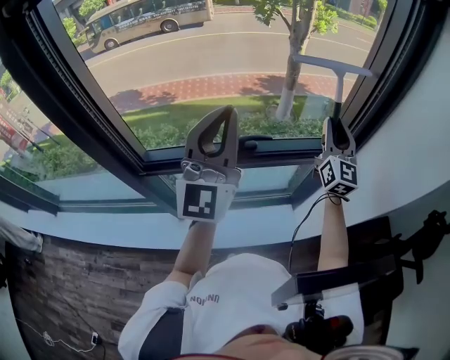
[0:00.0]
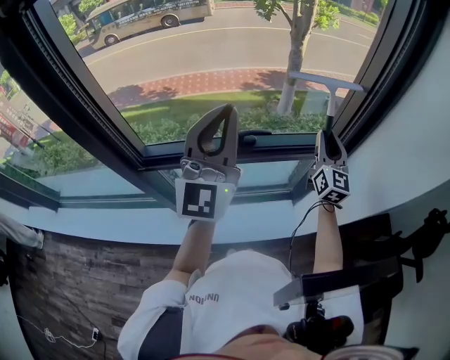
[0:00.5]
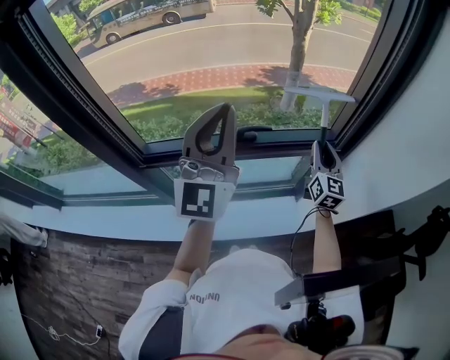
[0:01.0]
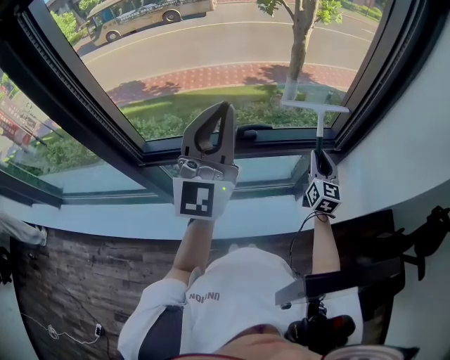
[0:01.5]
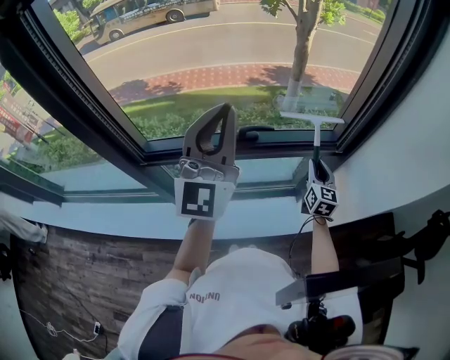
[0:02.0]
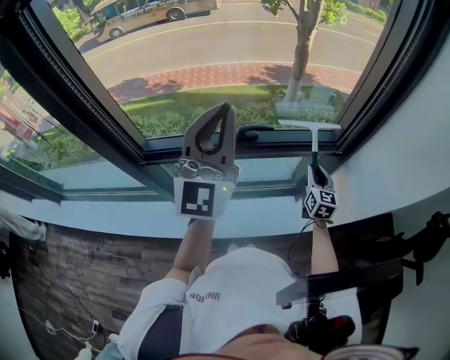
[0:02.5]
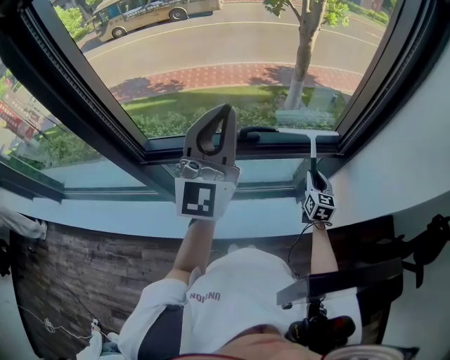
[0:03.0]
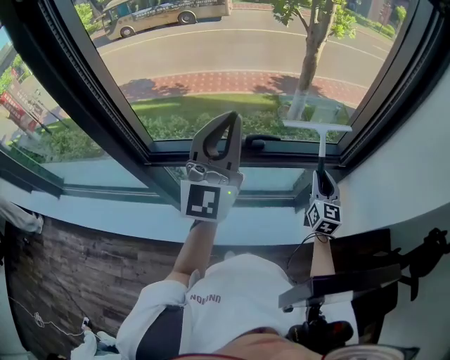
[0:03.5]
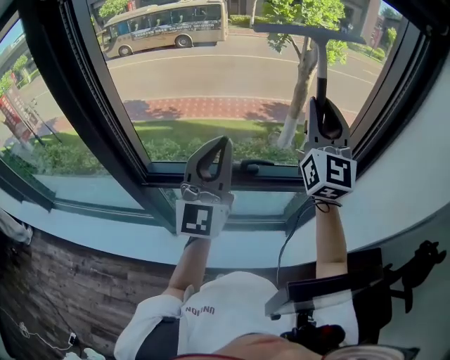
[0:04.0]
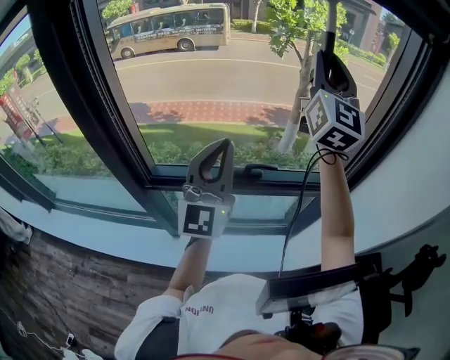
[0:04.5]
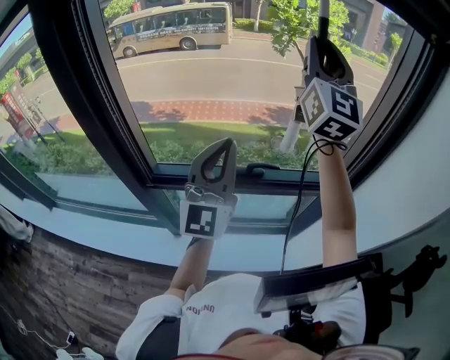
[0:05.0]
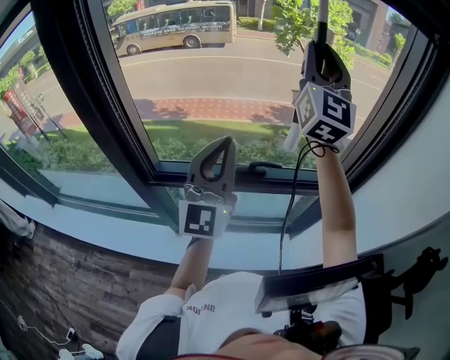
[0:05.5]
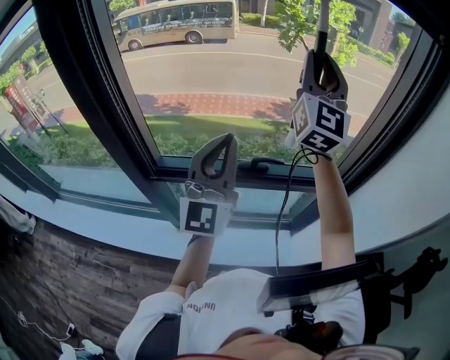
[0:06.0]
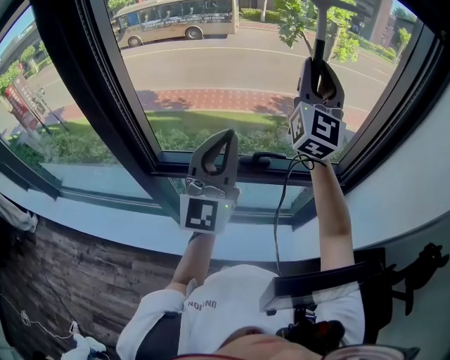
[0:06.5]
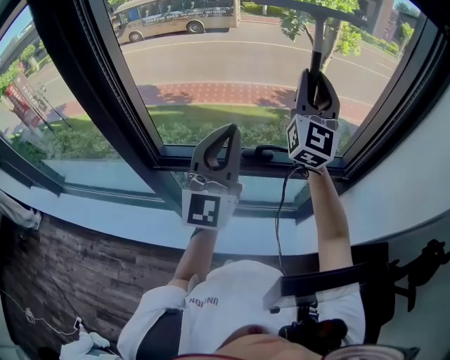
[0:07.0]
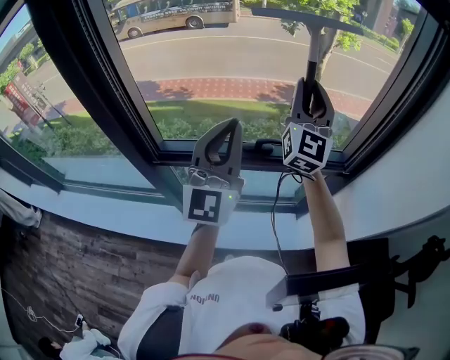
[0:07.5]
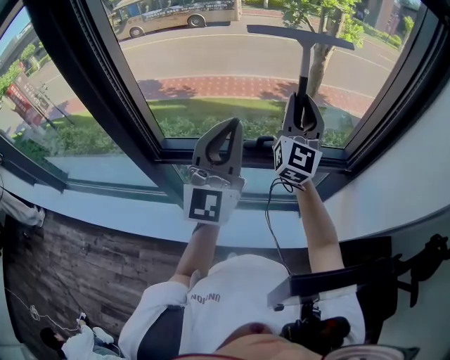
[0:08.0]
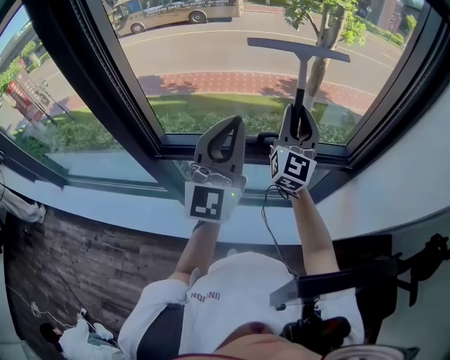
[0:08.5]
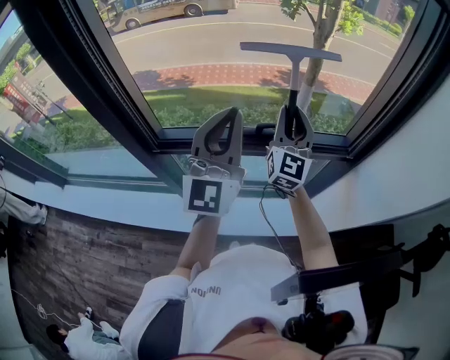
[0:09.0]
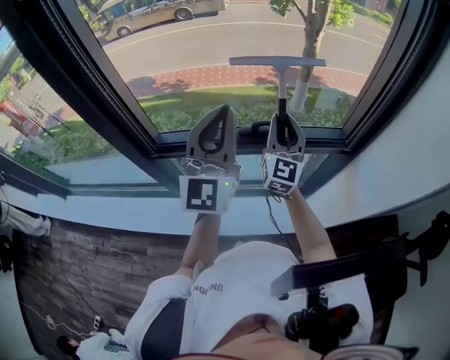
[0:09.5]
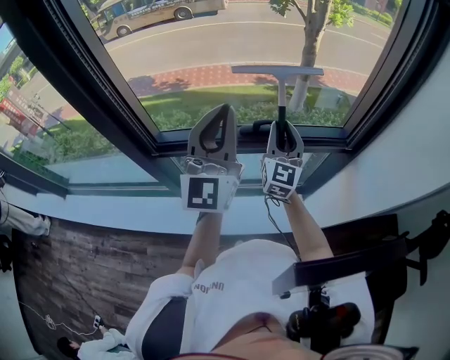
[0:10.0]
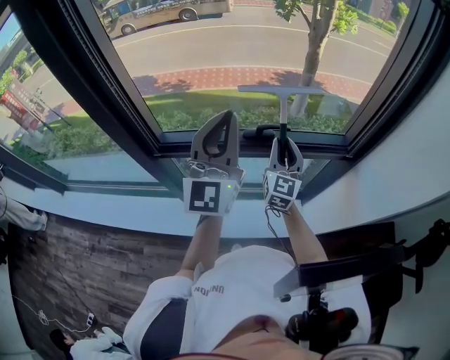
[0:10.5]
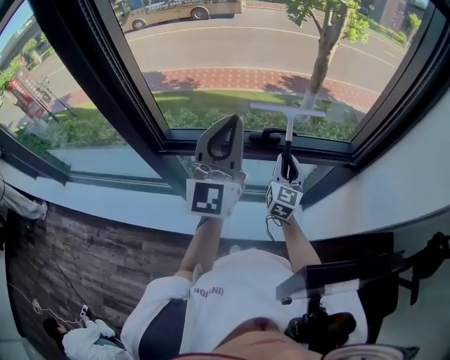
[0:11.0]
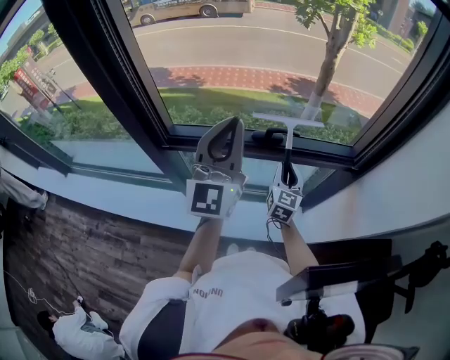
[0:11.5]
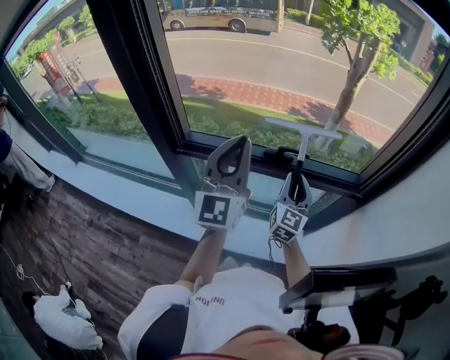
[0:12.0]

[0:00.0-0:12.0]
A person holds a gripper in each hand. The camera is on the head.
0.0 to 2.0 s: The right gripper moves downward, some 20 cm, and turns by some 30 degrees.
2.0 to 4.0 s: The right gripper shifts approximately 40 cm upward, and angles its fingers upward, by roughly 40 degrees.
4.0 to 6.0 s: The right gripper heads upward and to the left, covering roughly 10 cm.
6.0 to 8.0 s: The right gripper shifts some 20 cm downward.
8.0 to 10.0 s: The right gripper travels downward by roughly 15 cm.
10.0 to 12.0 s: The right gripper travels downward by about 5 cm.

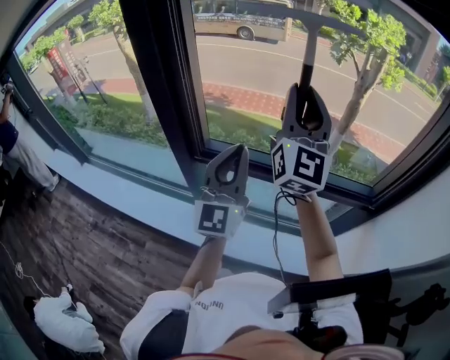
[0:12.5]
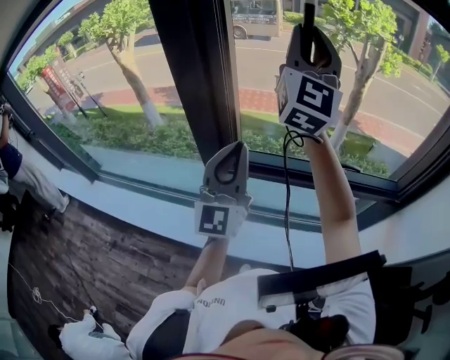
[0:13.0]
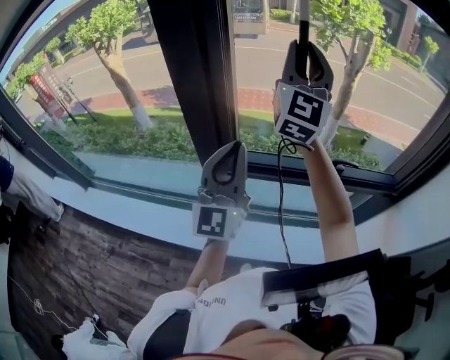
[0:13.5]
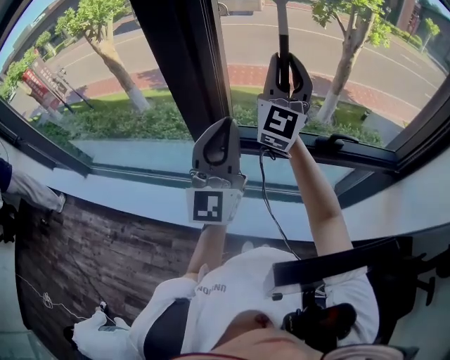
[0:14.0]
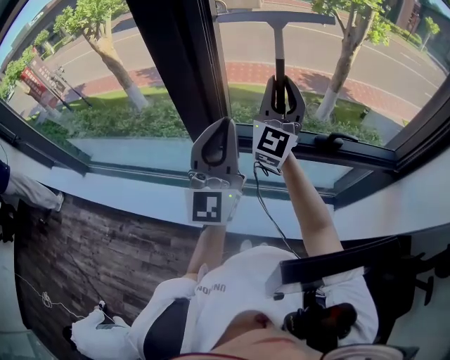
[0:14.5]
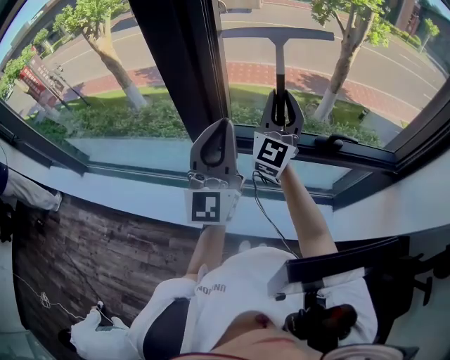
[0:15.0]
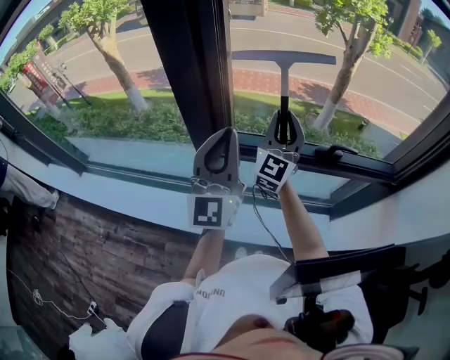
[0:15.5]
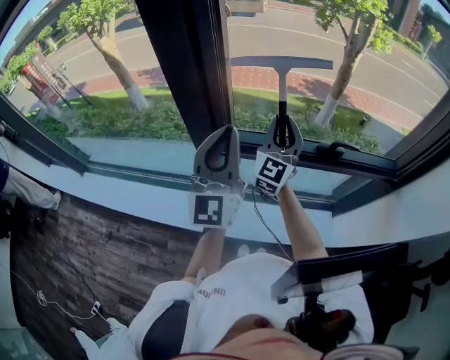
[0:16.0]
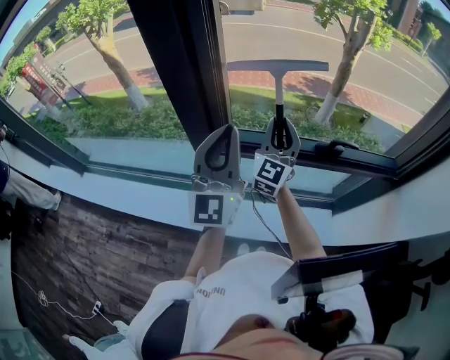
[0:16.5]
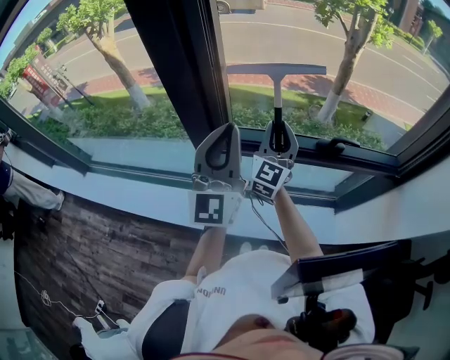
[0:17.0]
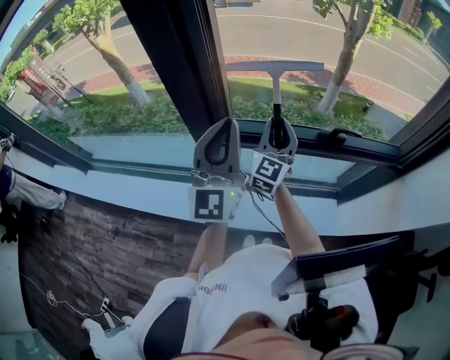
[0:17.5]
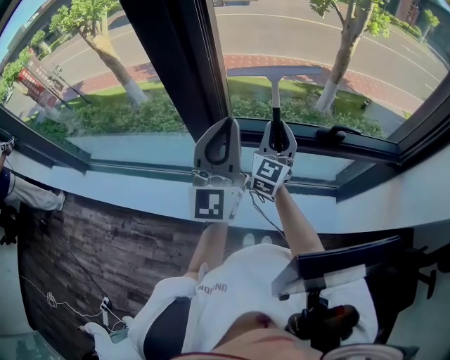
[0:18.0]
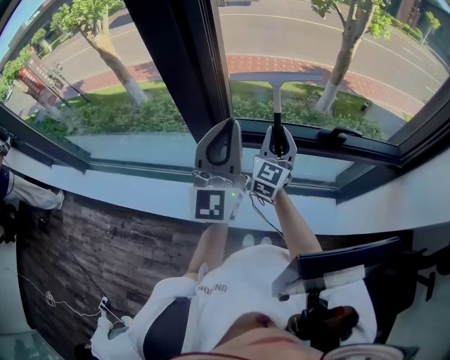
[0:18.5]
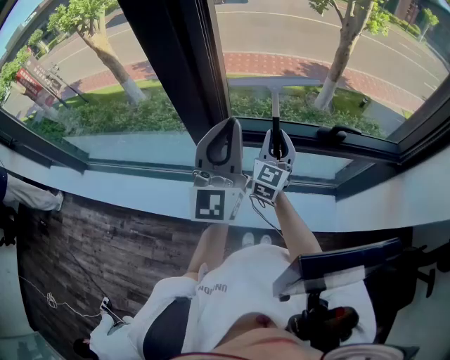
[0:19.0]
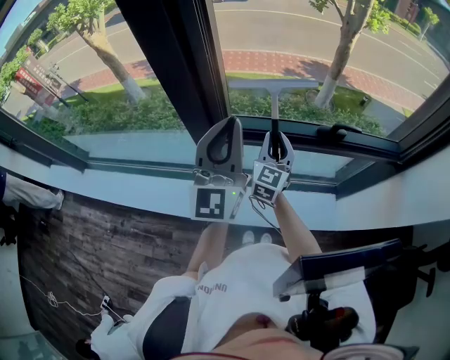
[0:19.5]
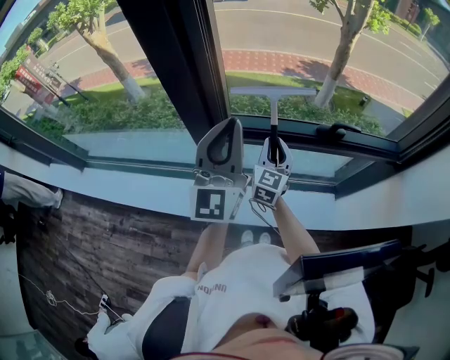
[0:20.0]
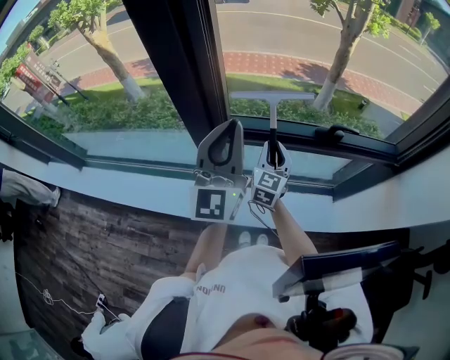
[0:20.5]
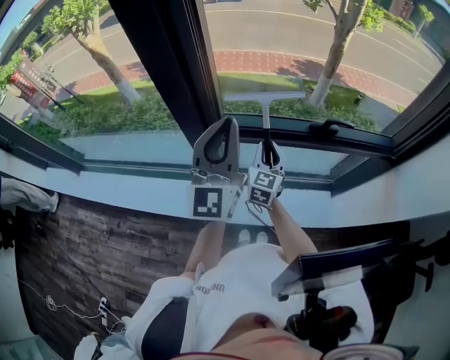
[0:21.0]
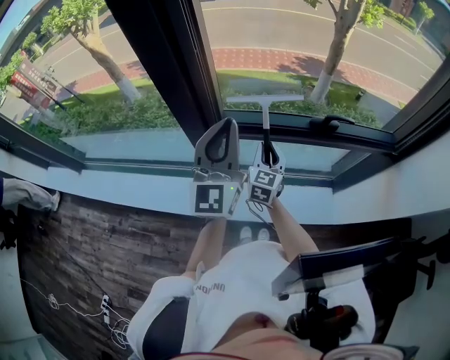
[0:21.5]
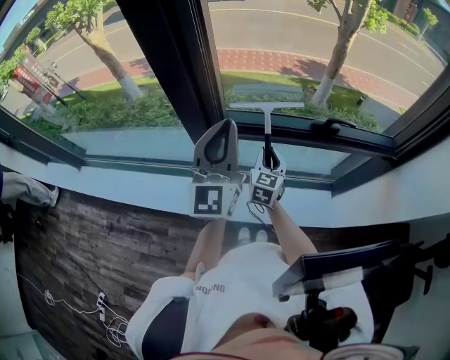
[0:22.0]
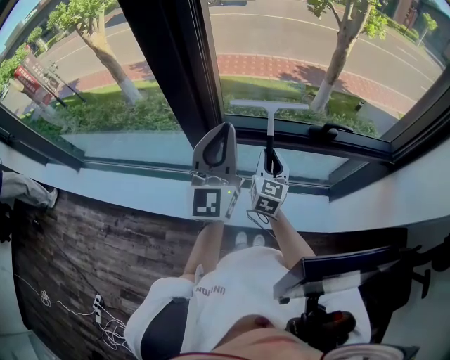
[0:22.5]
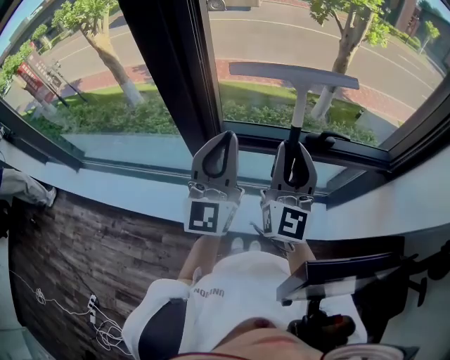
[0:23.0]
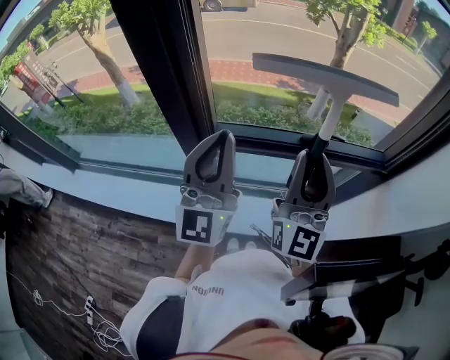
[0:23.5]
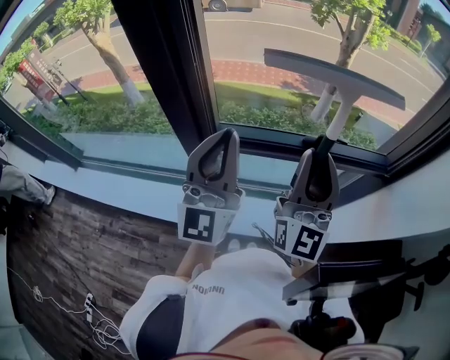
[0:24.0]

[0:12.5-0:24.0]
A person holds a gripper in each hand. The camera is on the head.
12.5 to 14.5 s: The right gripper heads to the left, downward and forward, covering roughly 20 cm. Meanwhile the left gripper shifts some 15 cm to the left.
14.5 to 16.5 s: The right gripper goes about 10 cm downward.
16.5 to 18.5 s: The right gripper is displaced downward by some 5 cm.
18.5 to 20.0 s: The right gripper is displaced downward by roughly 5 cm.
20.0 to 22.0 s: The right gripper heads downward, covering approximately 5 cm.
22.0 to 24.0 s: The right gripper moves upward, about 30 cm, and tilts its fingers about 50 degrees upward; the left gripper is displaced upward by some 5 cm.

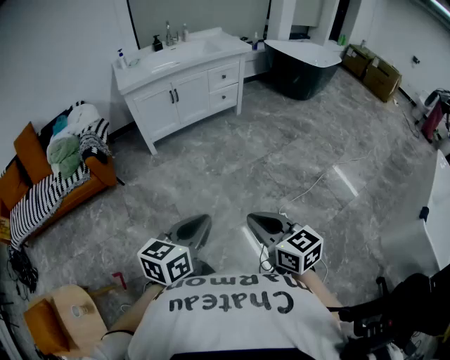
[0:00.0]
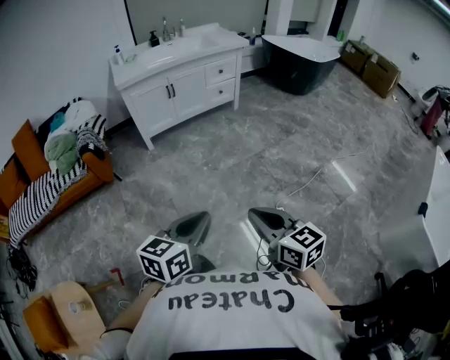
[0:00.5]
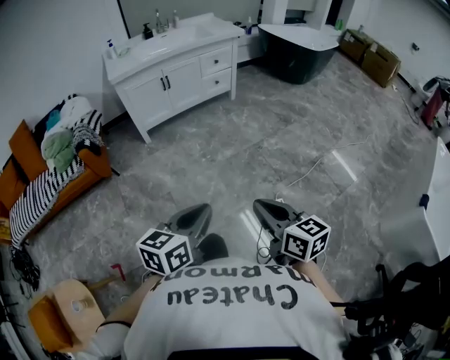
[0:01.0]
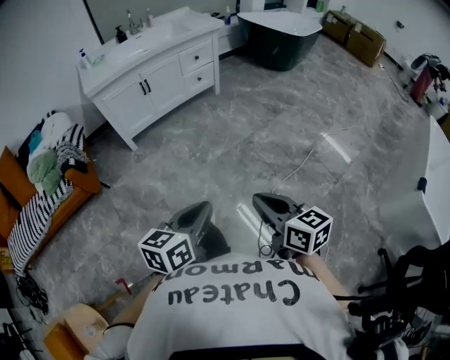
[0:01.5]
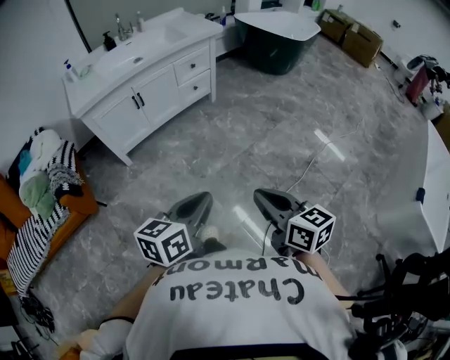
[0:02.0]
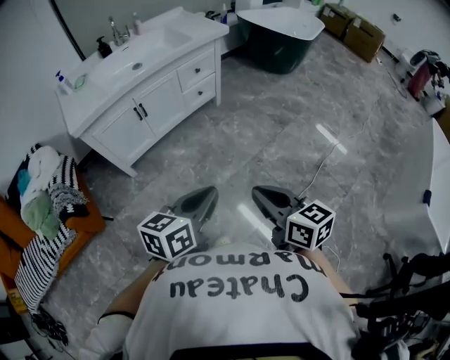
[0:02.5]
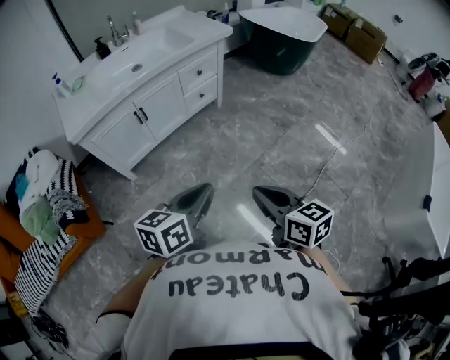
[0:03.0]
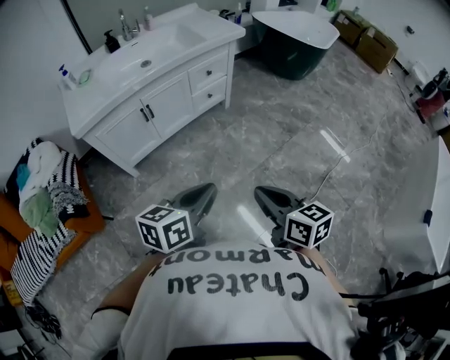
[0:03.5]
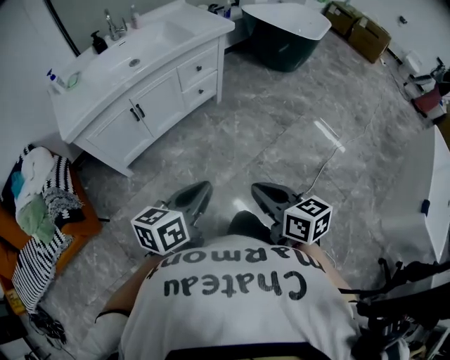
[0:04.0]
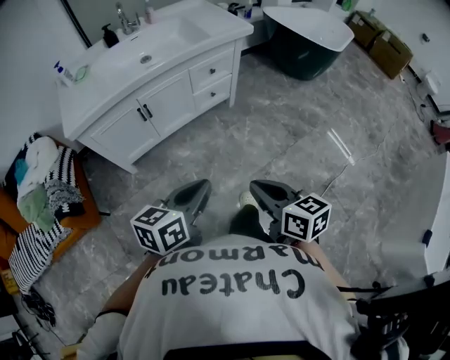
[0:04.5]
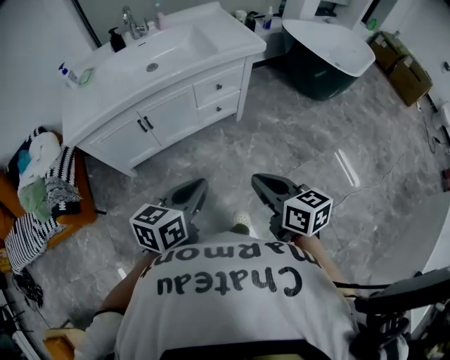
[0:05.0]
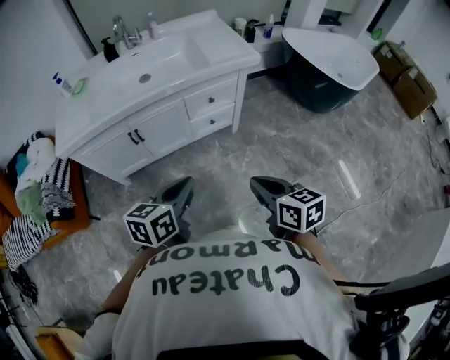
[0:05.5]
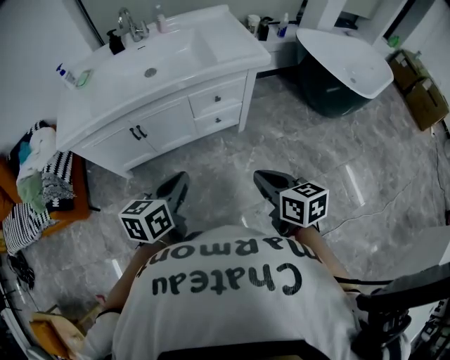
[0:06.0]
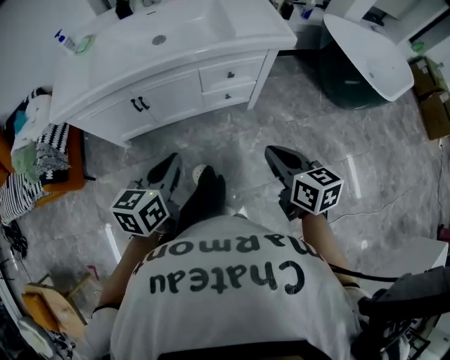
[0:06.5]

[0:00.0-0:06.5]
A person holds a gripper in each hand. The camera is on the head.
0.0 to 2.0 s: Both grippers move forward, some 25 cm.
2.0 to 4.5 s: The two grippers go approximately 30 cm forward.
4.5 to 6.5 s: The left gripper heads forward, covering roughly 25 cm, and swivels some 30 degrees. The right gripper is displaced forward and to the right by approximately 35 cm.
